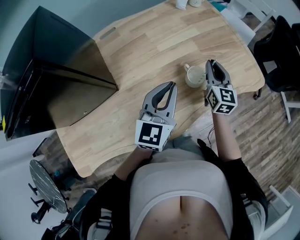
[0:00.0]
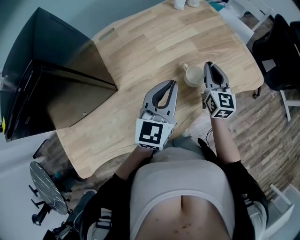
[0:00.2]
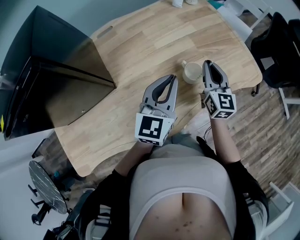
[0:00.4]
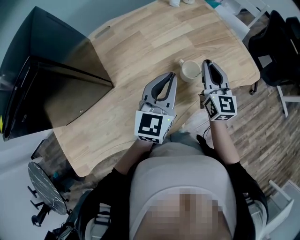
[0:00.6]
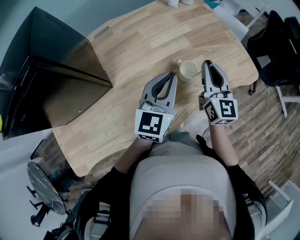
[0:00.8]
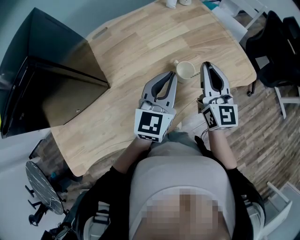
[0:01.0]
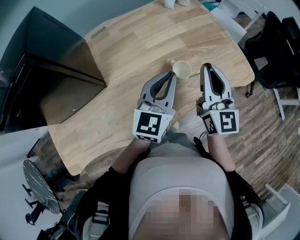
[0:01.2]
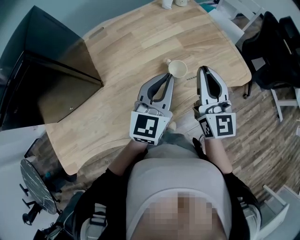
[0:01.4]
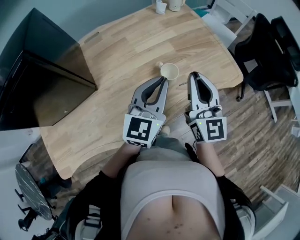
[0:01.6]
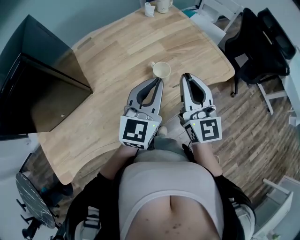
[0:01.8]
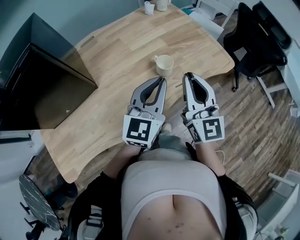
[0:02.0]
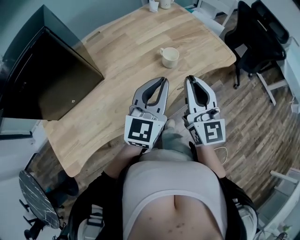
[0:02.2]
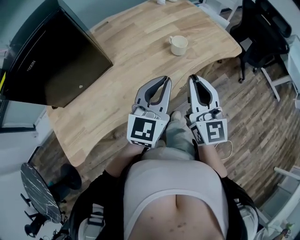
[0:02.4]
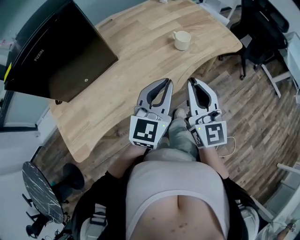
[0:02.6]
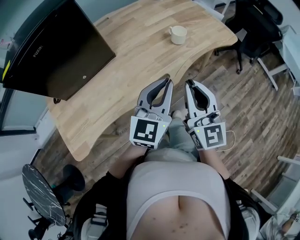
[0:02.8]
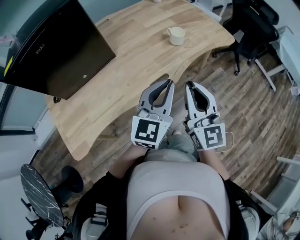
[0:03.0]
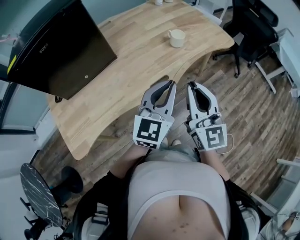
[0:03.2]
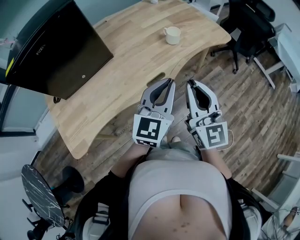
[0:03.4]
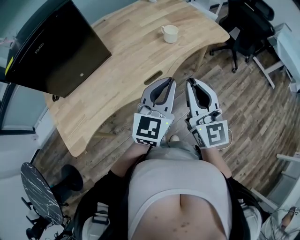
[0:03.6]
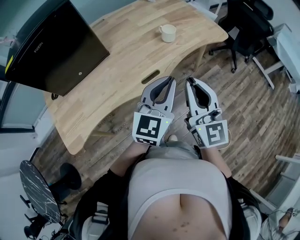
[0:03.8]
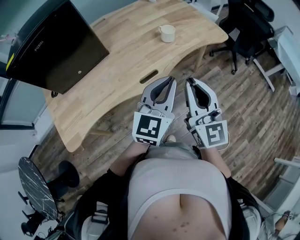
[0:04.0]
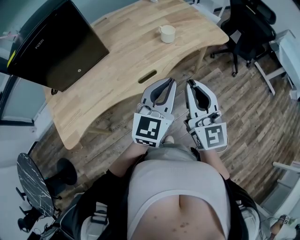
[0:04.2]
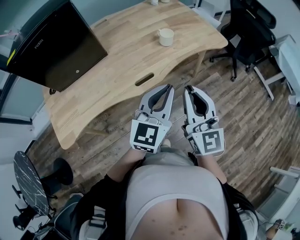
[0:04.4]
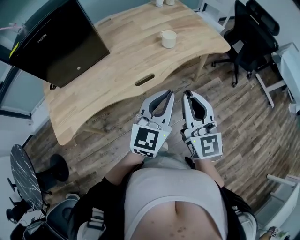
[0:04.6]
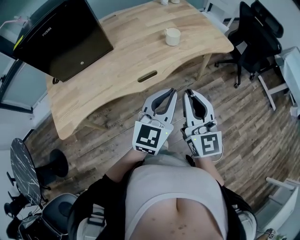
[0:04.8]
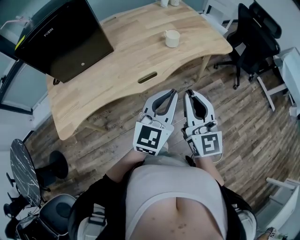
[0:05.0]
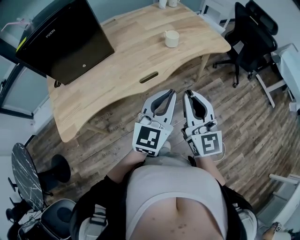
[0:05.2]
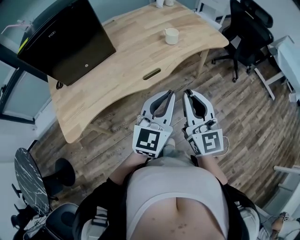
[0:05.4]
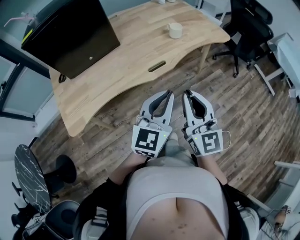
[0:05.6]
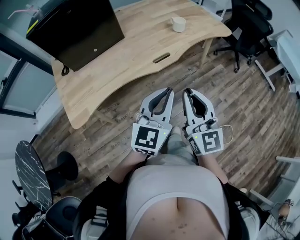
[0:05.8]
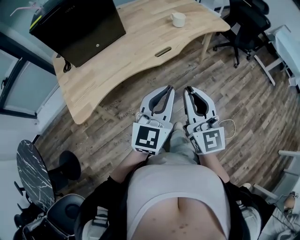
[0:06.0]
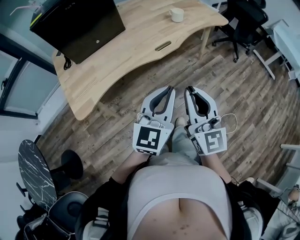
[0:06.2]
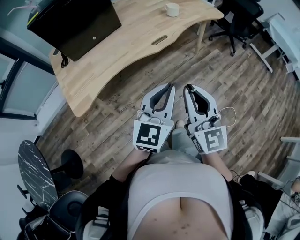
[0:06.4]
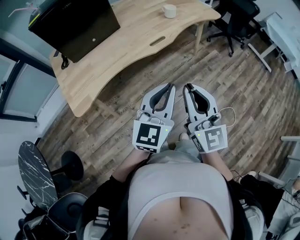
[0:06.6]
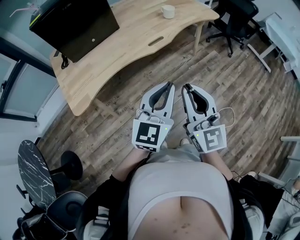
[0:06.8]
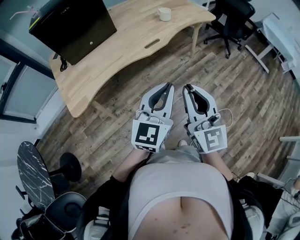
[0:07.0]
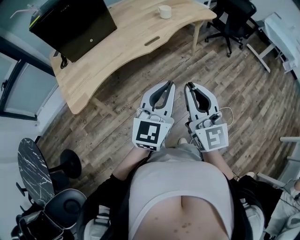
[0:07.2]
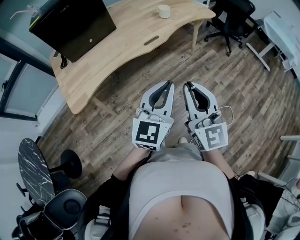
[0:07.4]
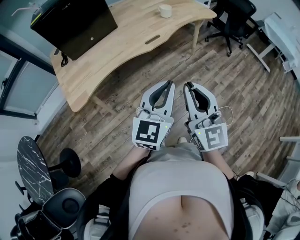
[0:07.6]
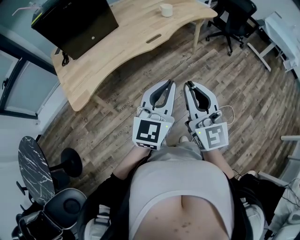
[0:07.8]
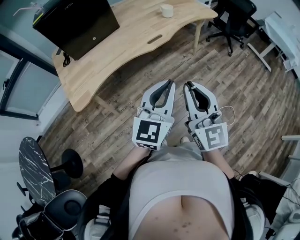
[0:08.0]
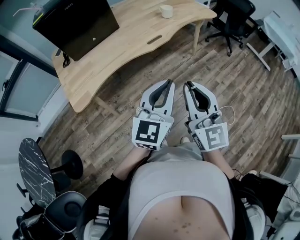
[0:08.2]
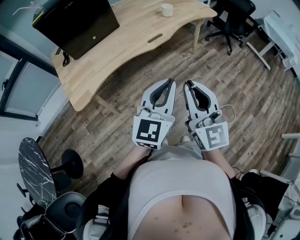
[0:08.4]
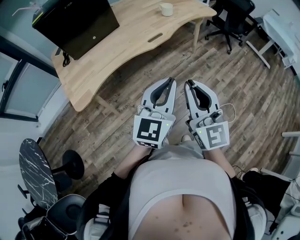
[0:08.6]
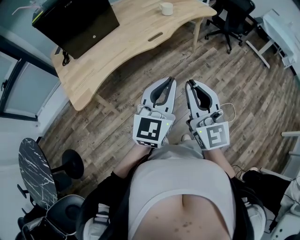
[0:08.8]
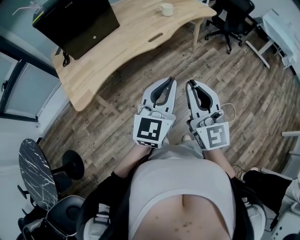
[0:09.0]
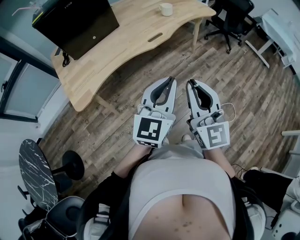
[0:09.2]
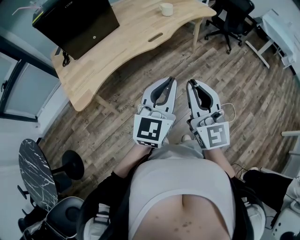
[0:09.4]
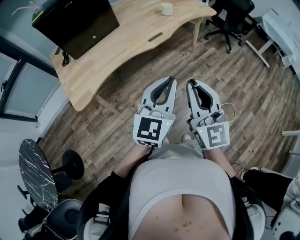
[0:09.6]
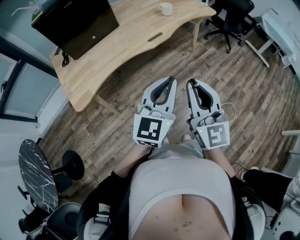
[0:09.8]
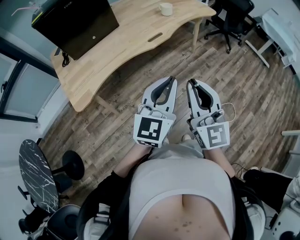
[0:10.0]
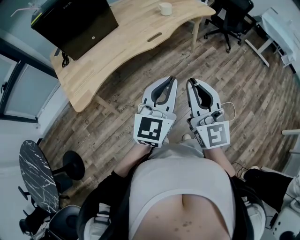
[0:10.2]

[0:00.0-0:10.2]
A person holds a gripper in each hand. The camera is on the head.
0:00.0 to 0:01.4: The right gripper shifts approximately 15 cm upward and backward, and rotates roughly 20 degrees, while the left gripper goes about 5 cm to the right.
0:01.4 to 0:03.0: The grippers both shift backward by roughly 30 cm.
0:03.0 to 0:04.4: Both grippers travel together to the right, about 10 cm.
0:04.4 to 0:05.8: The two grippers go some 20 cm backward and to the left.
0:05.8 to 0:07.2: Both grippers travel together backward, roughly 15 cm.
0:07.2 to 0:08.8: There are only small adjustments of the grippers.
0:08.8 to 0:10.2: Neither gripper changes place.
